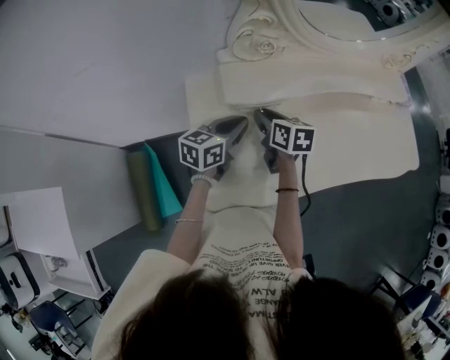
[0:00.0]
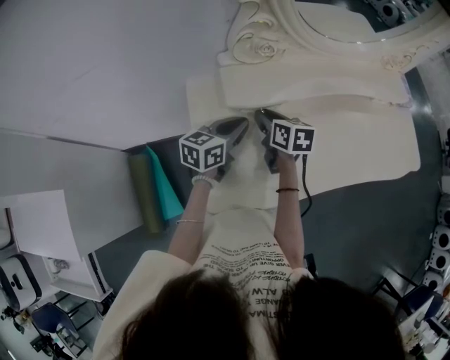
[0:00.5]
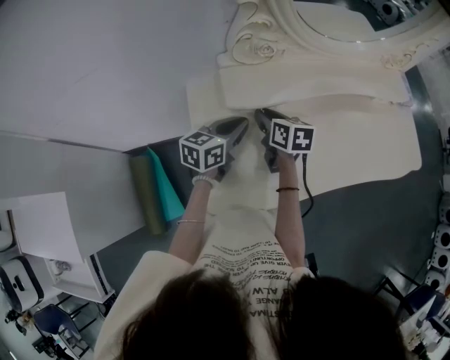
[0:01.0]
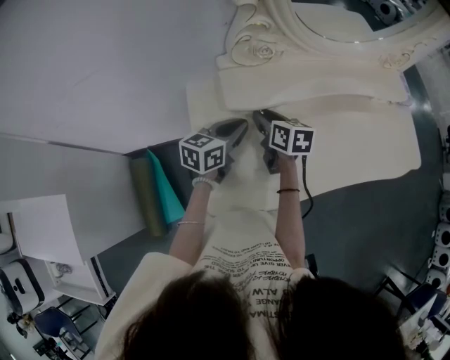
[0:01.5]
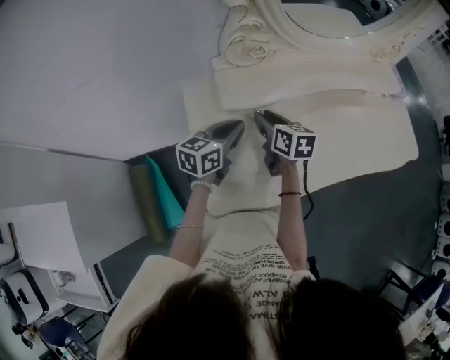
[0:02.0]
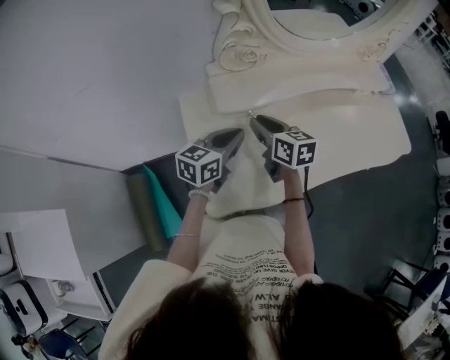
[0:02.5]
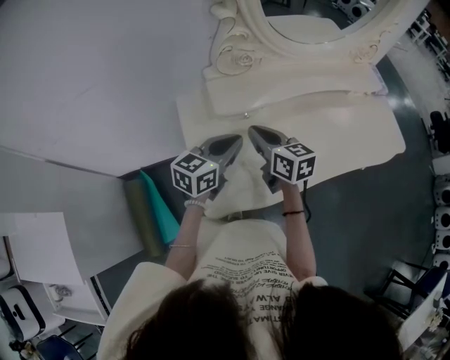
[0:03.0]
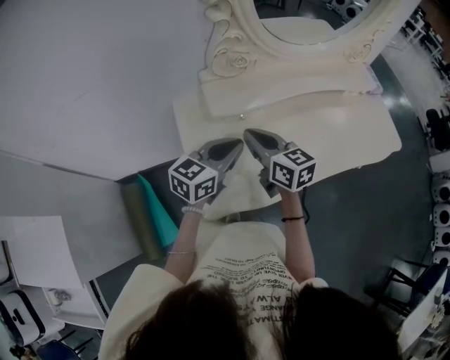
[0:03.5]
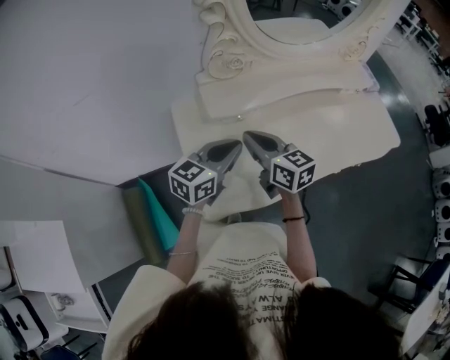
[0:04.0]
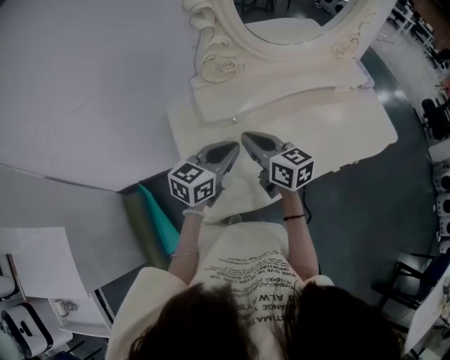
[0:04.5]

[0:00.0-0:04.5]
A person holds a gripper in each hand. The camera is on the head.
0:00.0 to 0:02.0: The grippers stay close to where they were, moving slightly.
0:02.0 to 0:04.5: The left gripper shifts approximately 10 cm backward and upward. The right gripper moves upward and backward, some 15 cm, rotates approximately 20 degrees, and closes up.

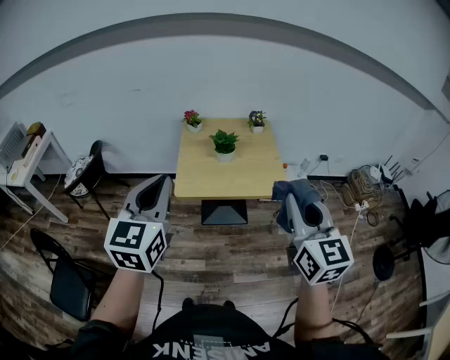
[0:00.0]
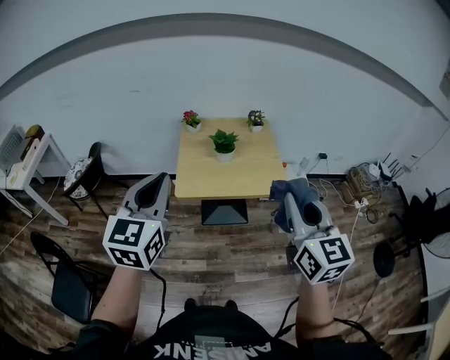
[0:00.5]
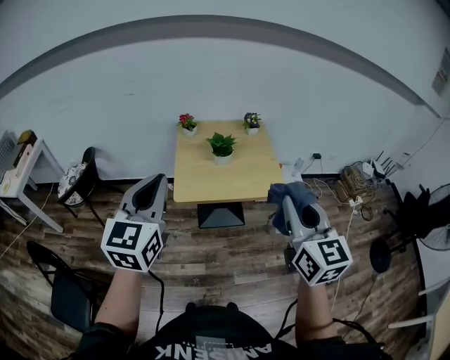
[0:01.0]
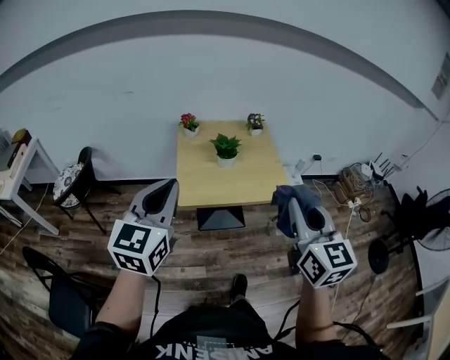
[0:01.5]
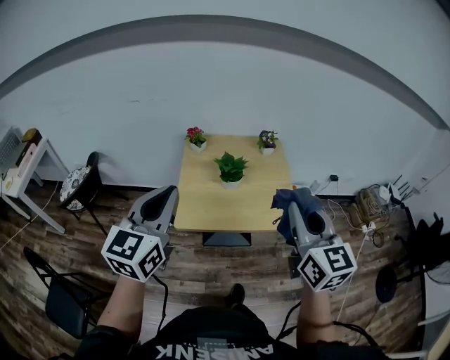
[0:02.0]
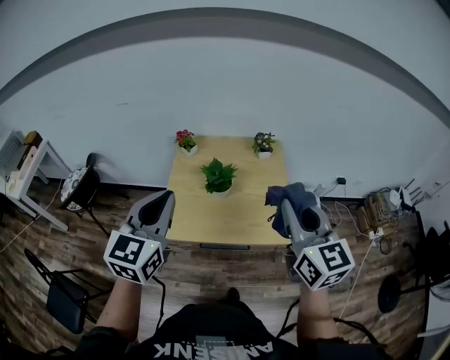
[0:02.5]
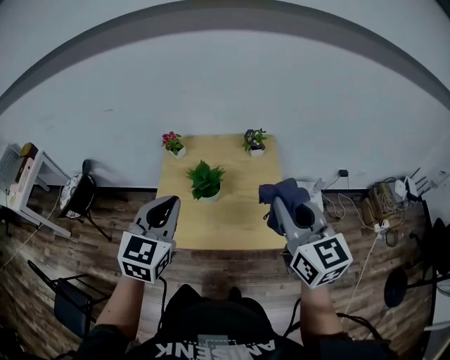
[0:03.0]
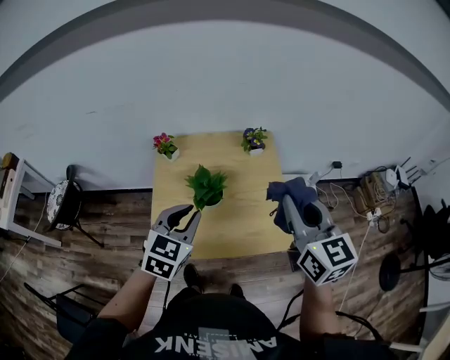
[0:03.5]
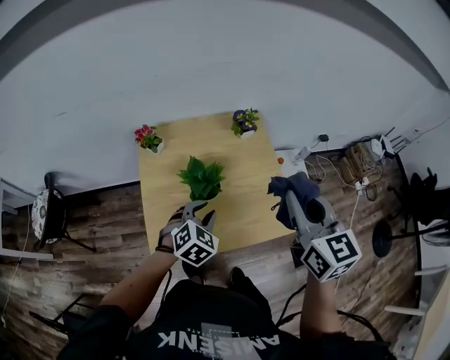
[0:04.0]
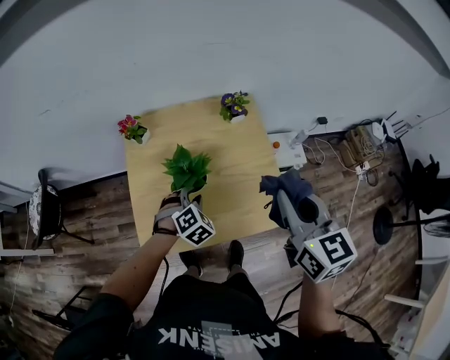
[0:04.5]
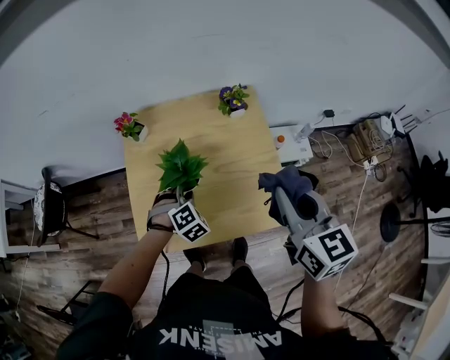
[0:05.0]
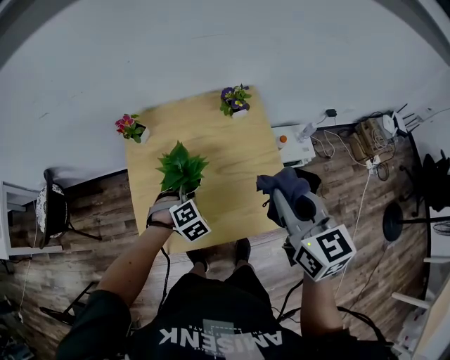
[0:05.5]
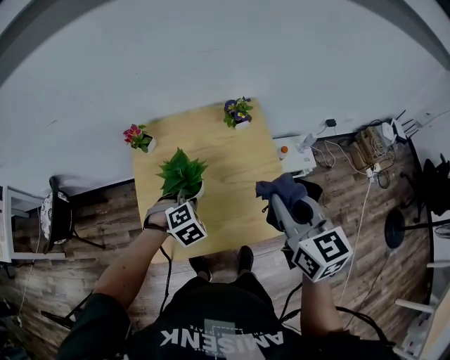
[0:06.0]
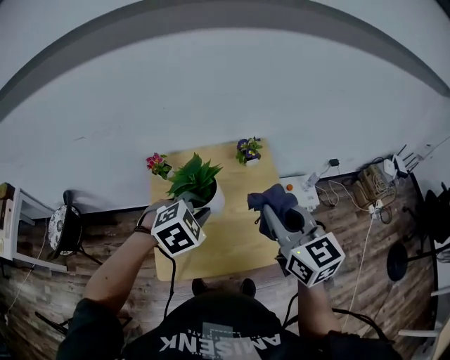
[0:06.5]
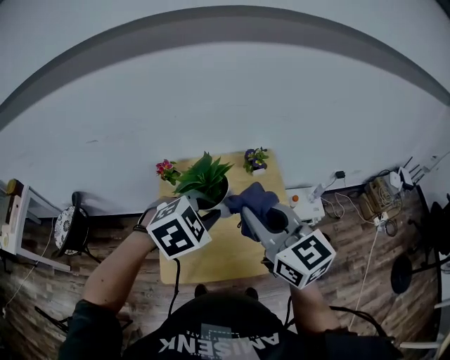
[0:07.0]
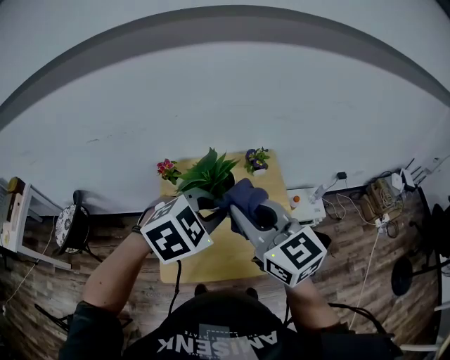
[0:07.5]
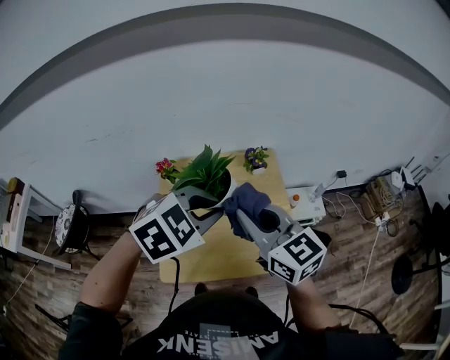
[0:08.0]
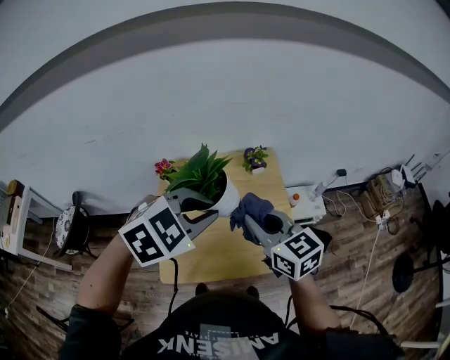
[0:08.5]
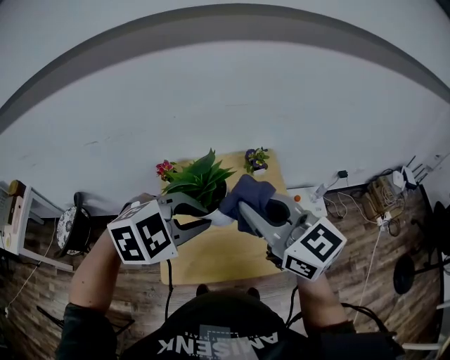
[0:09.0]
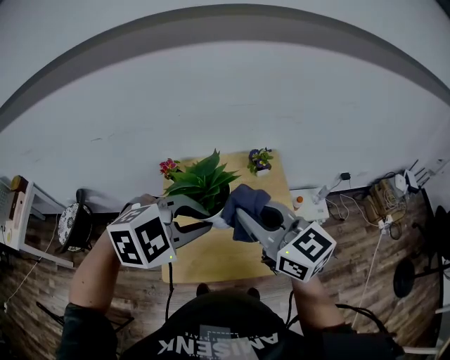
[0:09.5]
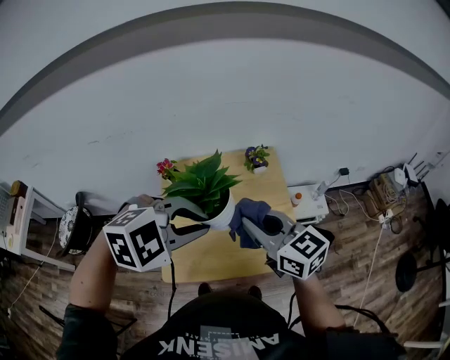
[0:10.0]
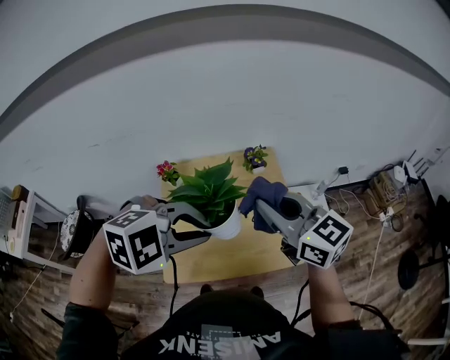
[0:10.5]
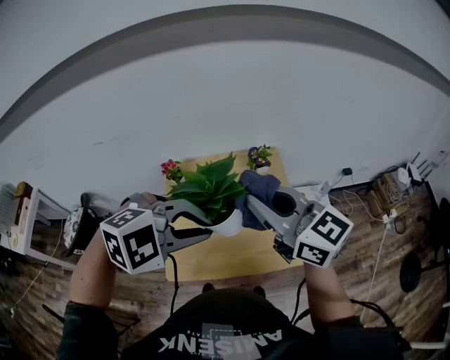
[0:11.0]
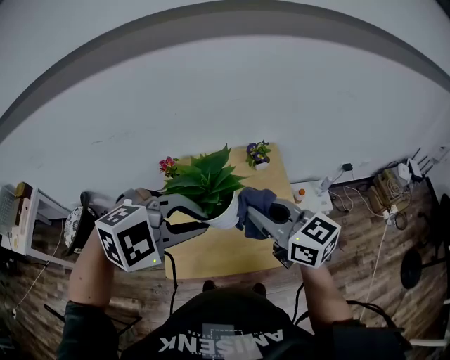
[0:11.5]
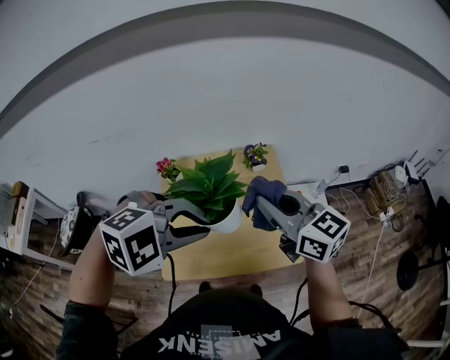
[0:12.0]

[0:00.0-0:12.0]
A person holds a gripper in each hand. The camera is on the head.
0:00.0 to 0:02.0: The two grippers go roughly 15 cm forward.
0:02.0 to 0:04.0: The right gripper travels forward by roughly 25 cm; the left gripper is displaced downward, forward and to the right by some 40 cm, points its fingers some 50 degrees further downward, and opens up.
0:04.0 to 0:06.0: The right gripper shifts roughly 5 cm downward, while the left gripper heads downward and forward, covering some 10 cm, and rotates roughly 30 degrees.
0:06.0 to 0:08.0: The right gripper heads to the left and upward, covering some 15 cm, and turns by approximately 30 degrees. Meanwhile the left gripper shifts some 30 cm upward, and rotates about 30 degrees.
0:08.0 to 0:10.0: The right gripper swings up and down, roughly 10 cm each way, with 2 reversals, while the left gripper turns by roughly 20 degrees.
0:10.0 to 0:12.0: The right gripper goes roughly 5 cm upward.

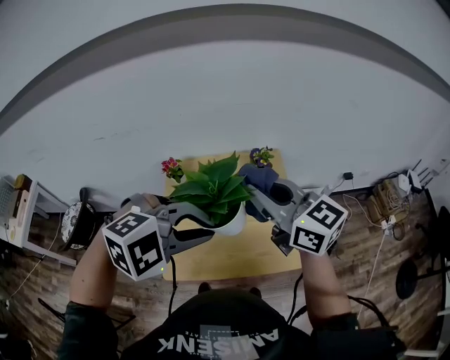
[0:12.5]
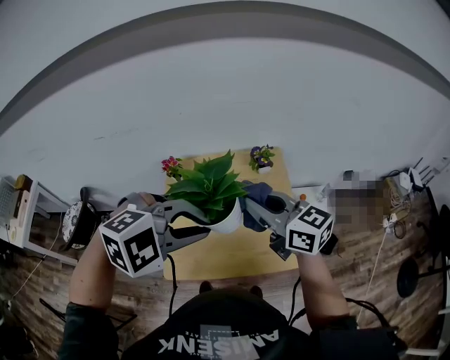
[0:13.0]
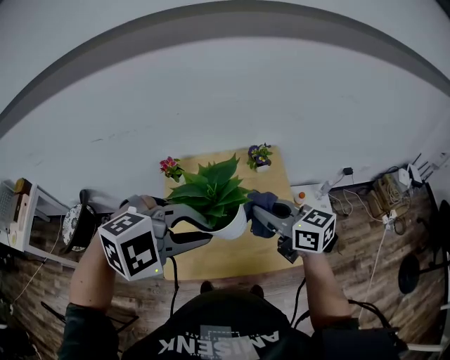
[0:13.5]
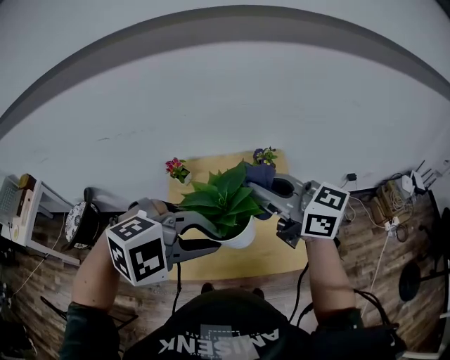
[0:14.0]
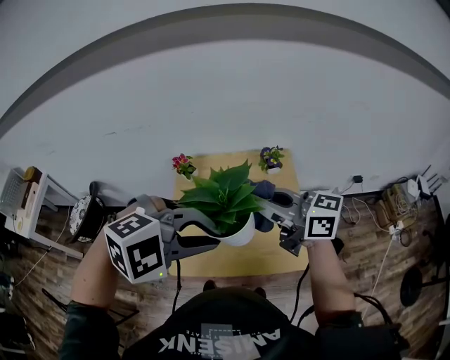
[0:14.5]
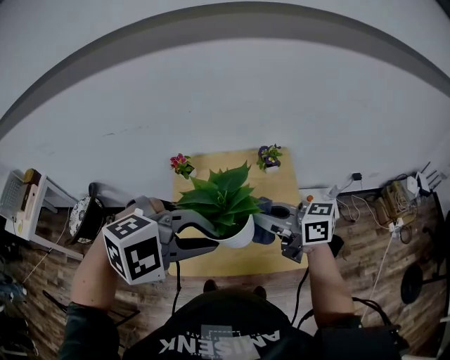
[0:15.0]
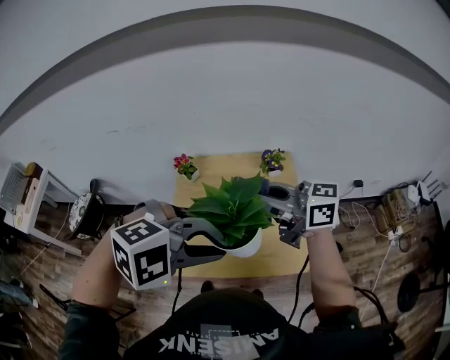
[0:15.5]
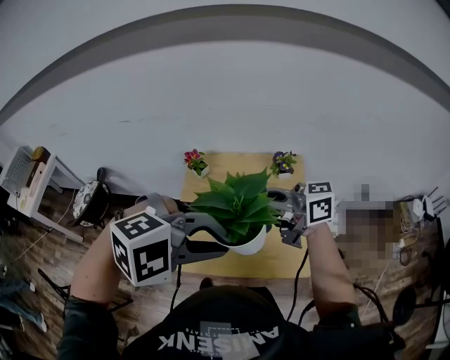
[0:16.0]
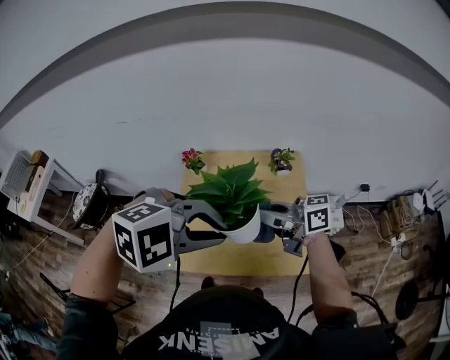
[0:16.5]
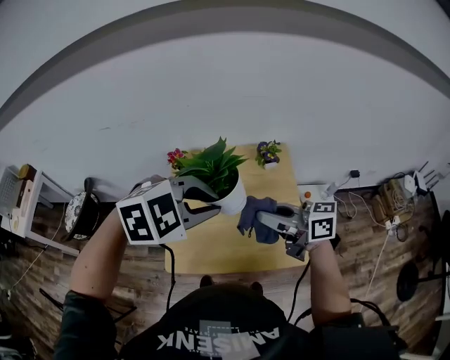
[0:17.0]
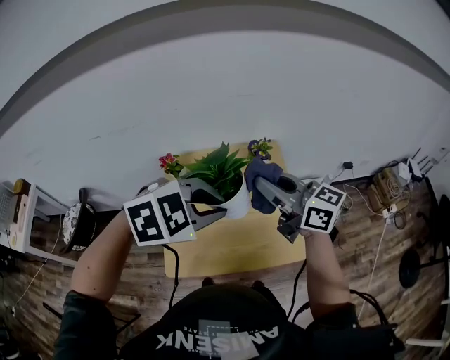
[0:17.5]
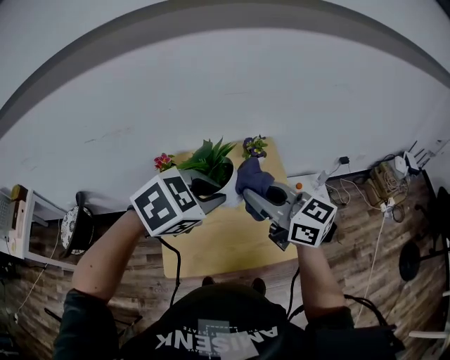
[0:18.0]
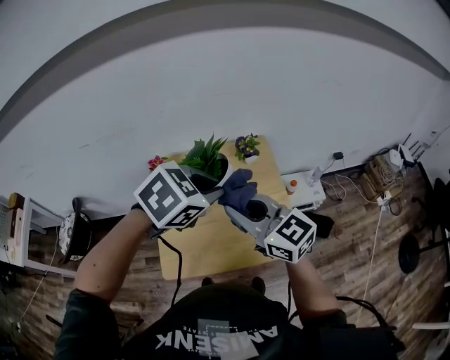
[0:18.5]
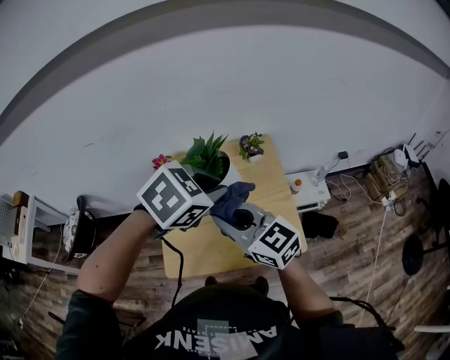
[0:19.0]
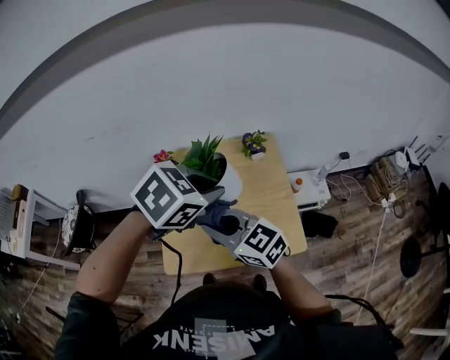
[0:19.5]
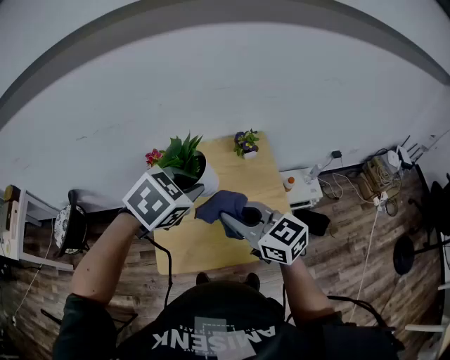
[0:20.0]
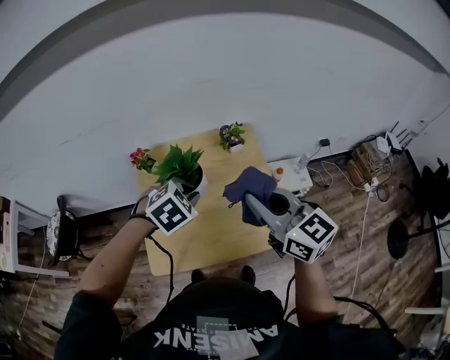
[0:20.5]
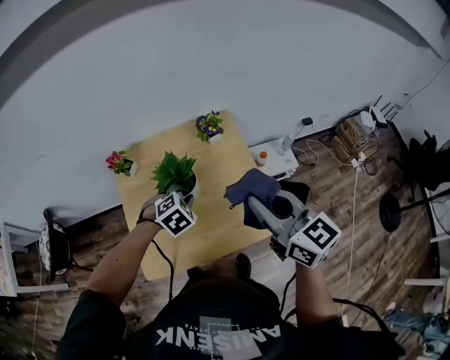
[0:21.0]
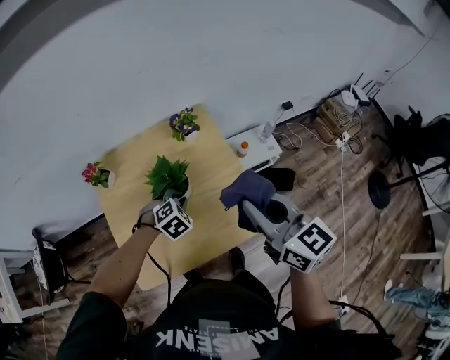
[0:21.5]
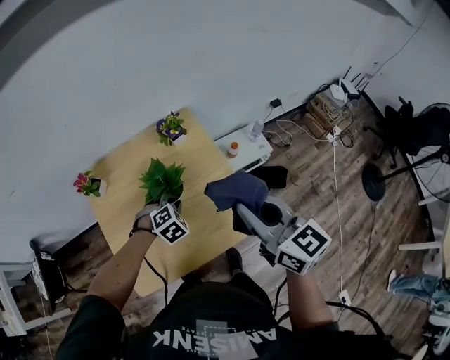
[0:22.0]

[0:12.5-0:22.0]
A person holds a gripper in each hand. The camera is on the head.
0:12.5 to 0:14.5: The right gripper moves up and down over some 10 cm, changing direction 2 times, and swivels approximately 30 degrees.
0:14.5 to 0:16.5: The right gripper moves up and down over approximately 10 cm, changing direction 2 times, and changes its angle by about 20 degrees.
0:16.5 to 0:18.0: The right gripper heads upward, covering about 5 cm, and swivels about 40 degrees, while the left gripper shifts by some 10 cm, and swivels some 30 degrees.
0:18.0 to 0:20.0: The right gripper travels downward by roughly 5 cm. Meanwhile the left gripper moves approximately 5 cm.
0:20.0 to 0:22.0: The left gripper is displaced downward by approximately 30 cm, and rotates about 30 degrees. Meanwhile the right gripper moves to the right, some 15 cm, and turns by approximately 30 degrees.
